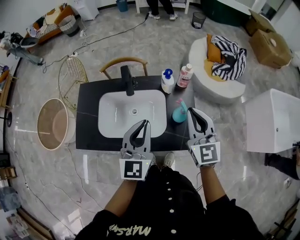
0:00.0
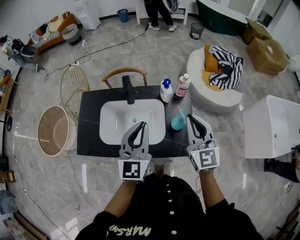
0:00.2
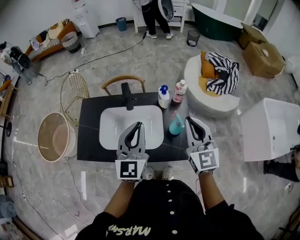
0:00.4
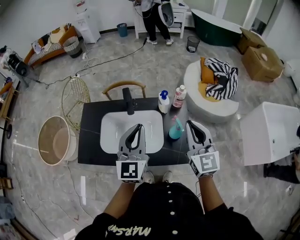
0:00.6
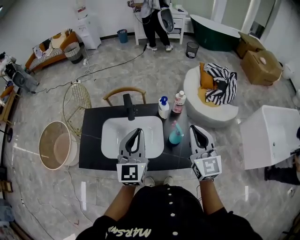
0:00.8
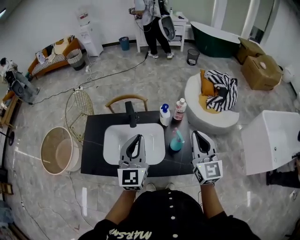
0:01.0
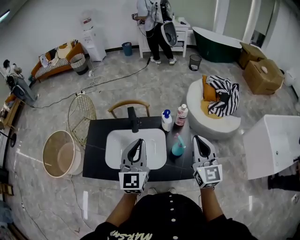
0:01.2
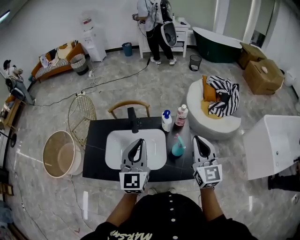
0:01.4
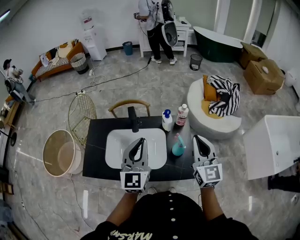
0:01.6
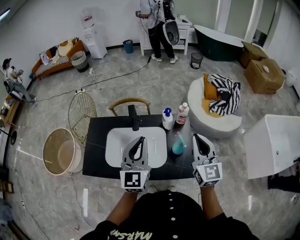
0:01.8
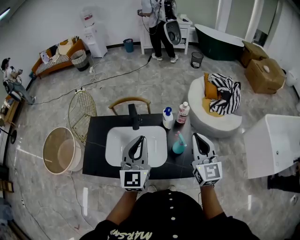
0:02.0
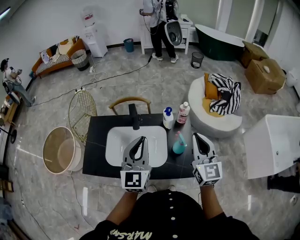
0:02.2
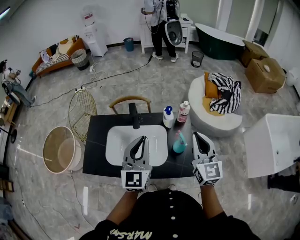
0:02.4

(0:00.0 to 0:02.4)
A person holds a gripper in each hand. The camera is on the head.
0:00.0 - 0:01.2: The grippers both shift upward by some 5 cm.
0:01.2 - 0:02.4: The two grippers keep their place.

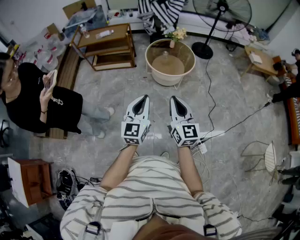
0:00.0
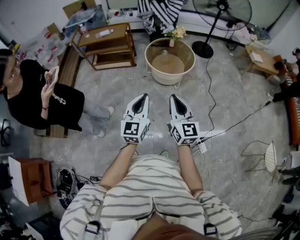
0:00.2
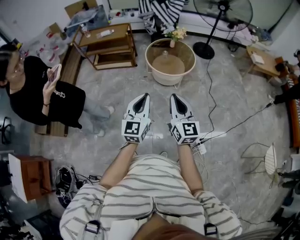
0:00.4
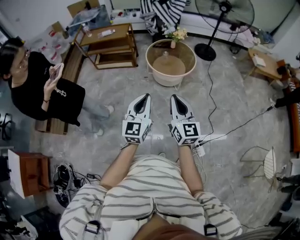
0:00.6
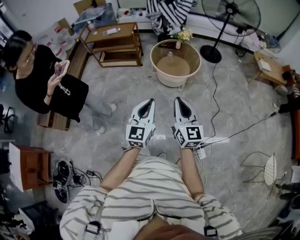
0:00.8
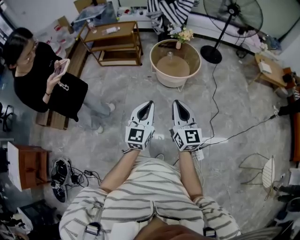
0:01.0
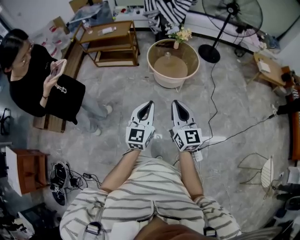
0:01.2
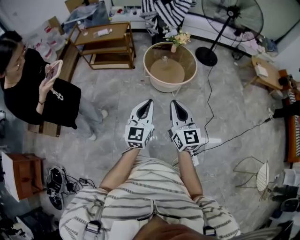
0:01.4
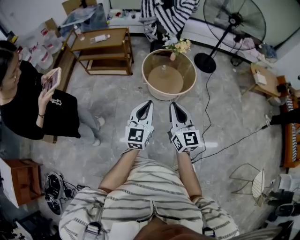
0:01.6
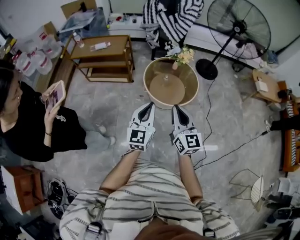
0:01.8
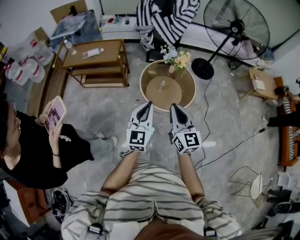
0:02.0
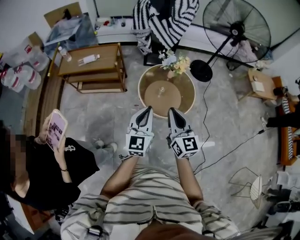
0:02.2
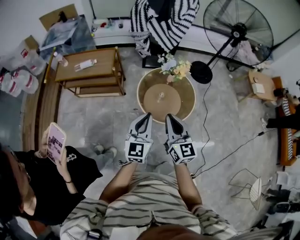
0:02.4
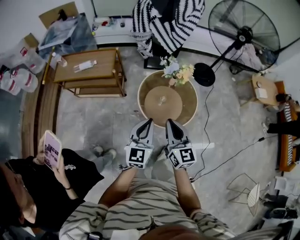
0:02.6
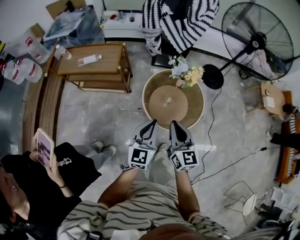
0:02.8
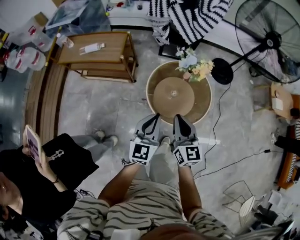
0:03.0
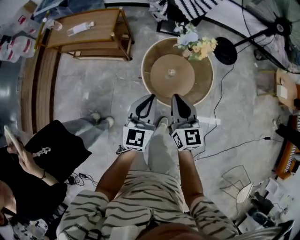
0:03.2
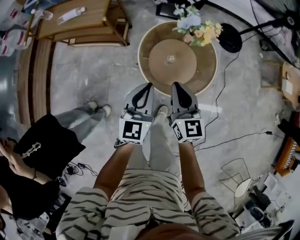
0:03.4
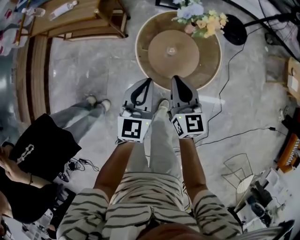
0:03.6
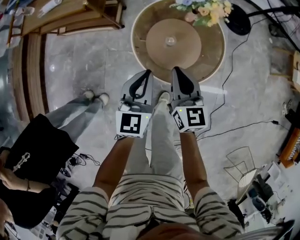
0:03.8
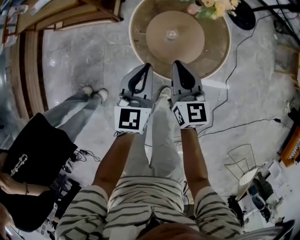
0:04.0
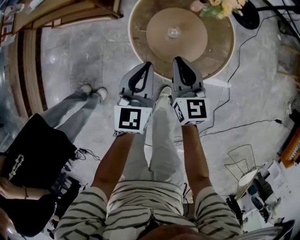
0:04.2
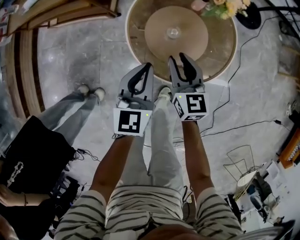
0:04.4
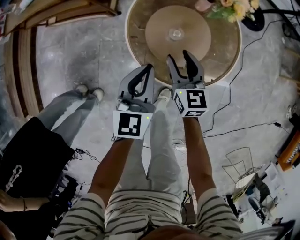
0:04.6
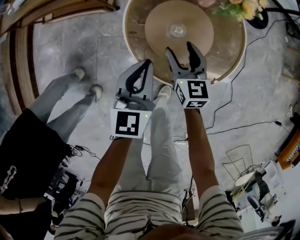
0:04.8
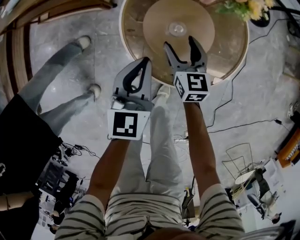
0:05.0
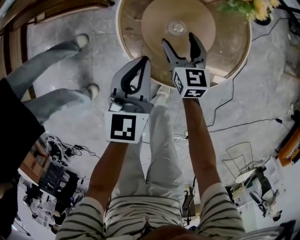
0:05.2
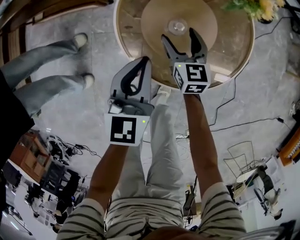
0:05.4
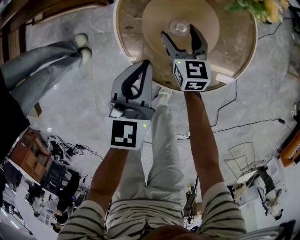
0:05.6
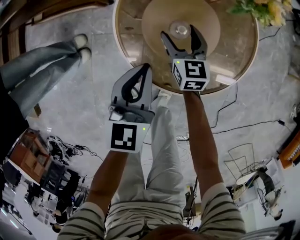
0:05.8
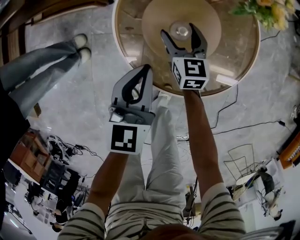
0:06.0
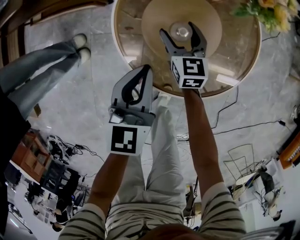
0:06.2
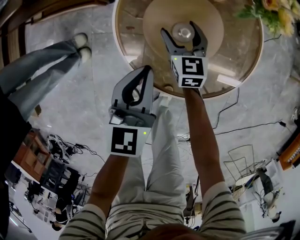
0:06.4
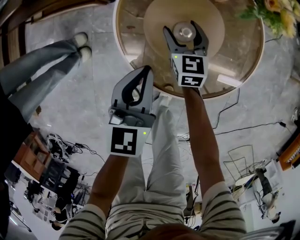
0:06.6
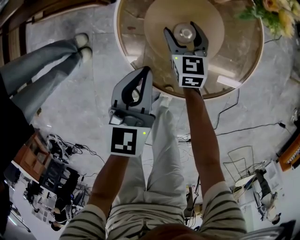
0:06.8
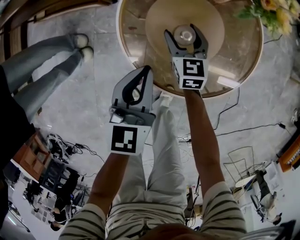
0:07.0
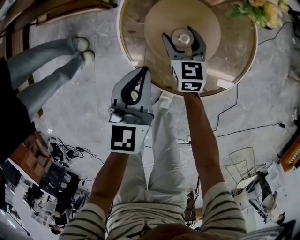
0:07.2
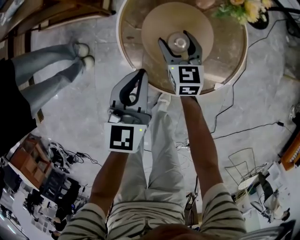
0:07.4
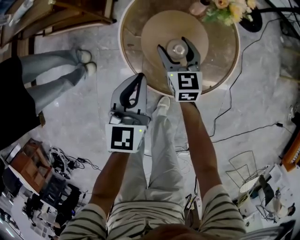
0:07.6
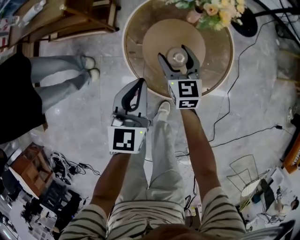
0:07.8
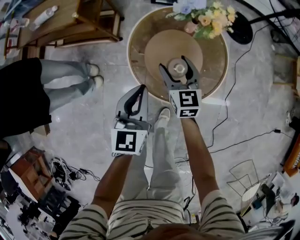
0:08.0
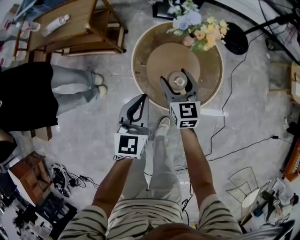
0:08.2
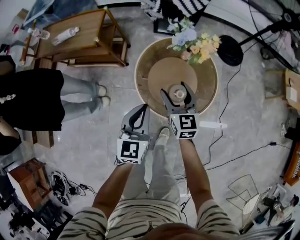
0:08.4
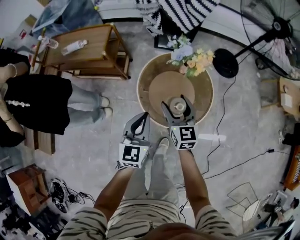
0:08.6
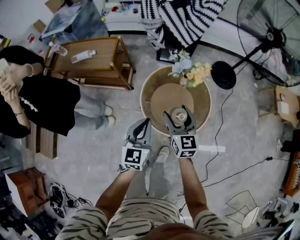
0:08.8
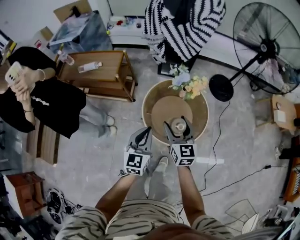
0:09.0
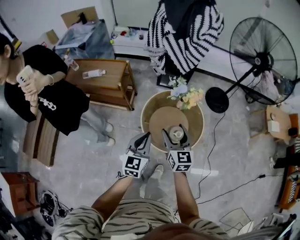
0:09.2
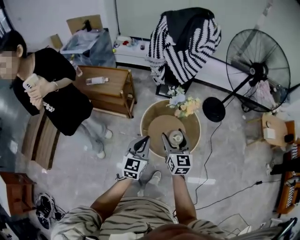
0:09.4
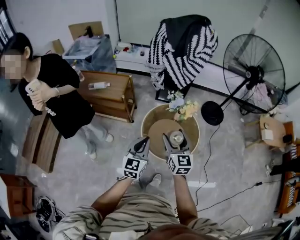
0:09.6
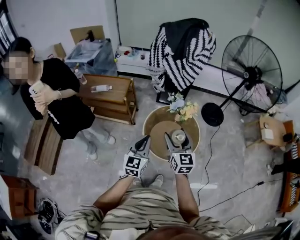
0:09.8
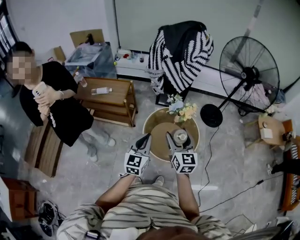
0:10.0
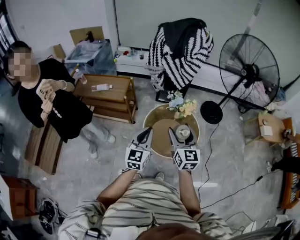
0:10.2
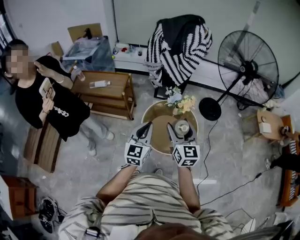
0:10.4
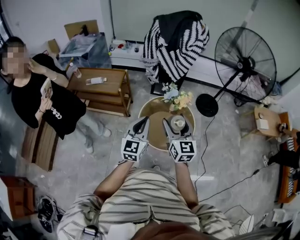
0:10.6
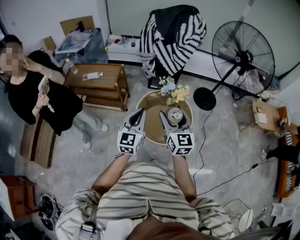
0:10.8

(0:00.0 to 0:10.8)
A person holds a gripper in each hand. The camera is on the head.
0:00.0 - 0:01.6: The right gripper heads forward, covering about 20 cm; the left gripper goes about 20 cm forward and to the right.
0:01.6 - 0:03.0: The two grippers go roughly 35 cm forward.
0:03.0 - 0:04.6: Both grippers travel together downward, approximately 30 cm. The right gripper opens its fingers.
0:04.6 - 0:06.2: The left gripper heads downward, covering roughly 10 cm, while the right gripper heads downward and forward, covering approximately 20 cm, and opens.
0:06.2 - 0:07.8: Both grippers move upward, some 15 cm.
0:07.8 - 0:09.2: The two grippers go approximately 30 cm upward.
0:09.2 - 0:10.8: Both grippers travel together upward, roughly 15 cm.

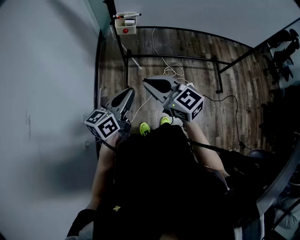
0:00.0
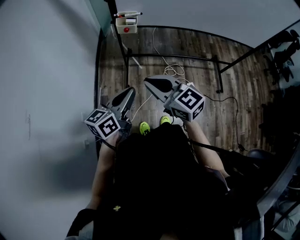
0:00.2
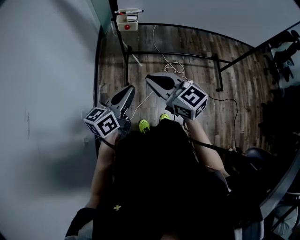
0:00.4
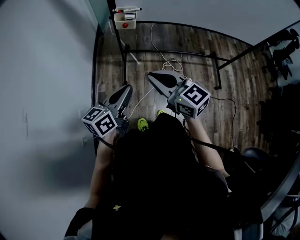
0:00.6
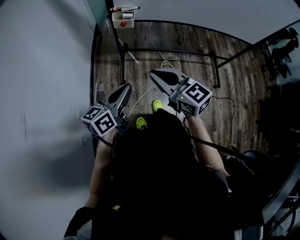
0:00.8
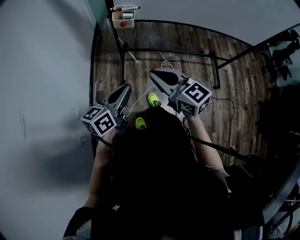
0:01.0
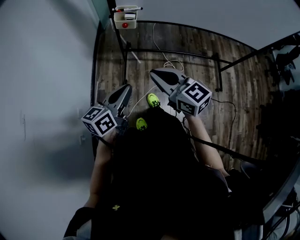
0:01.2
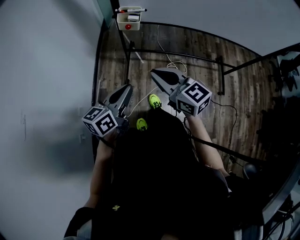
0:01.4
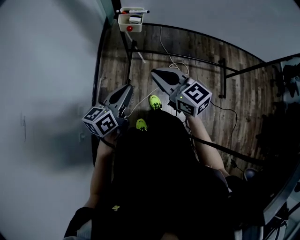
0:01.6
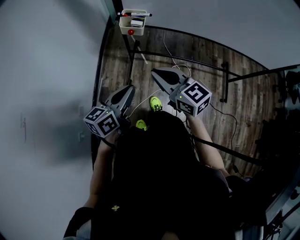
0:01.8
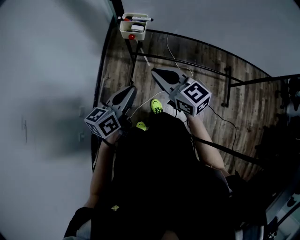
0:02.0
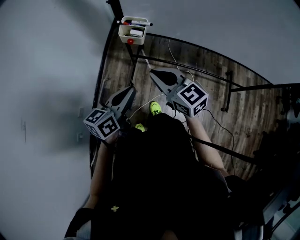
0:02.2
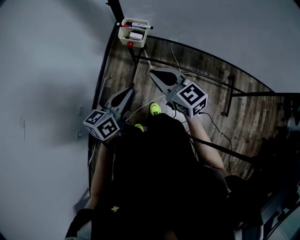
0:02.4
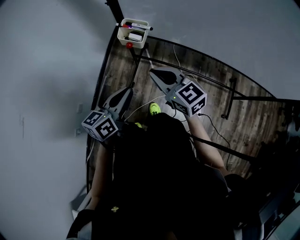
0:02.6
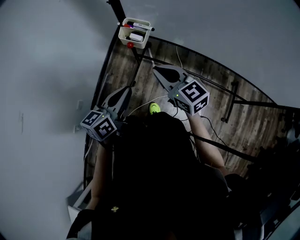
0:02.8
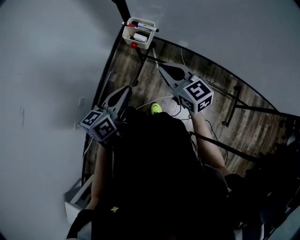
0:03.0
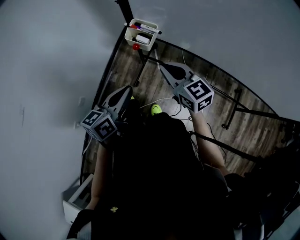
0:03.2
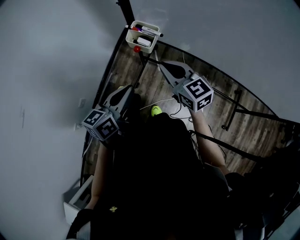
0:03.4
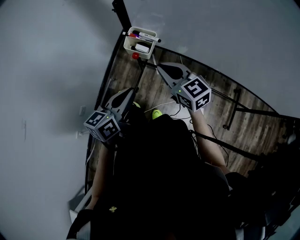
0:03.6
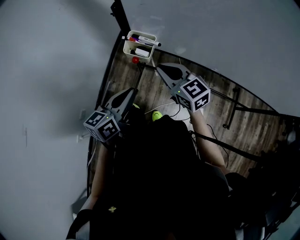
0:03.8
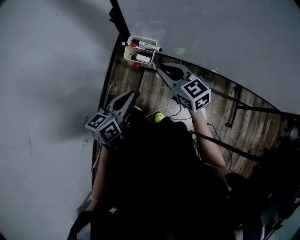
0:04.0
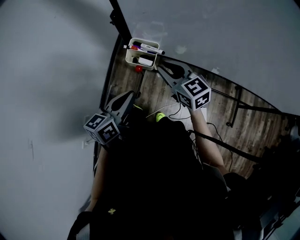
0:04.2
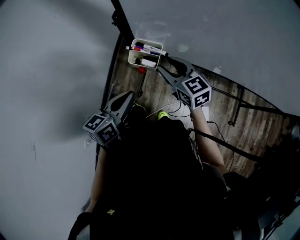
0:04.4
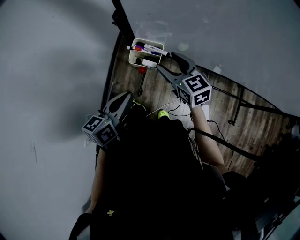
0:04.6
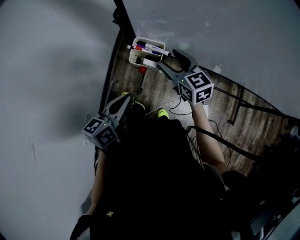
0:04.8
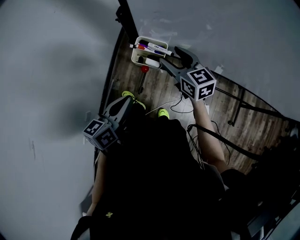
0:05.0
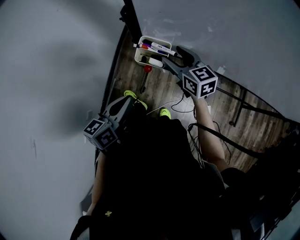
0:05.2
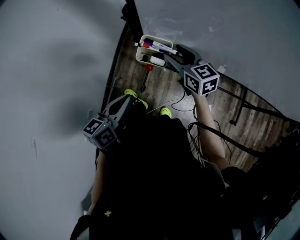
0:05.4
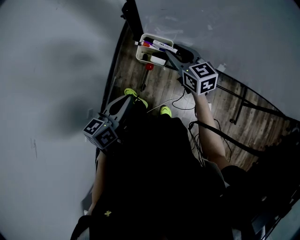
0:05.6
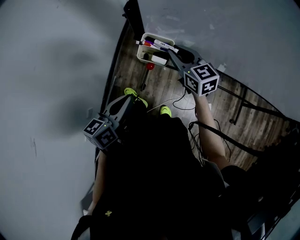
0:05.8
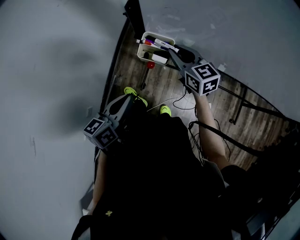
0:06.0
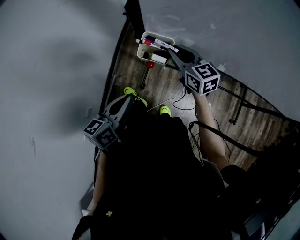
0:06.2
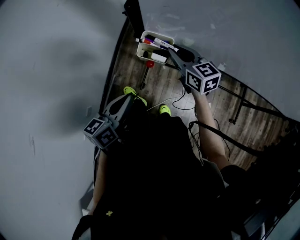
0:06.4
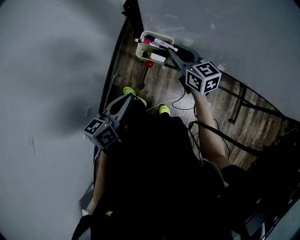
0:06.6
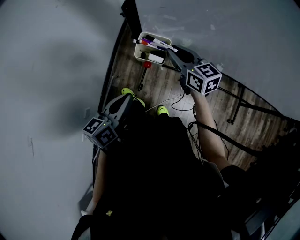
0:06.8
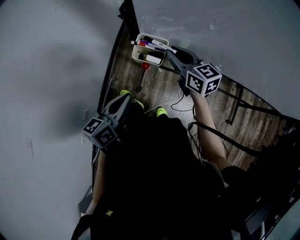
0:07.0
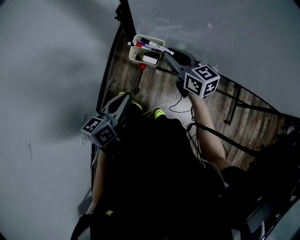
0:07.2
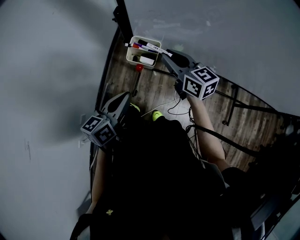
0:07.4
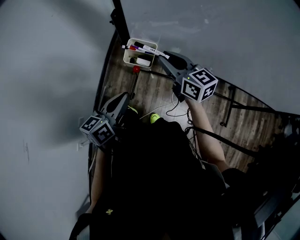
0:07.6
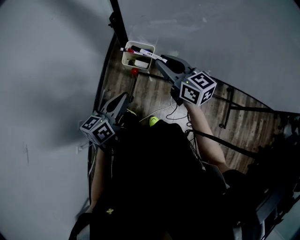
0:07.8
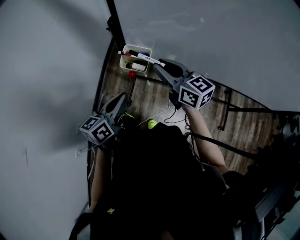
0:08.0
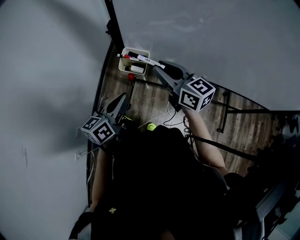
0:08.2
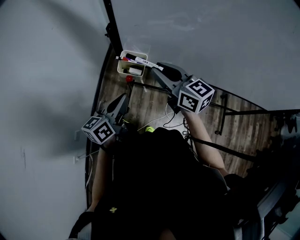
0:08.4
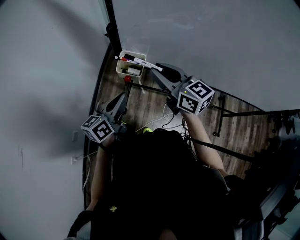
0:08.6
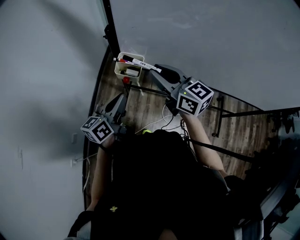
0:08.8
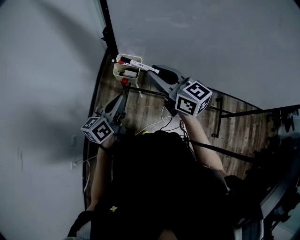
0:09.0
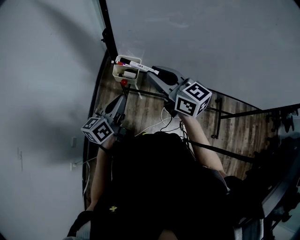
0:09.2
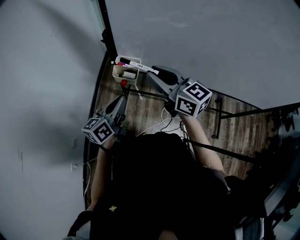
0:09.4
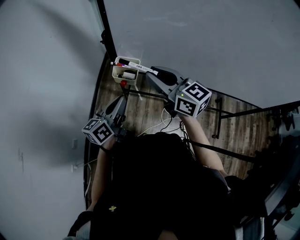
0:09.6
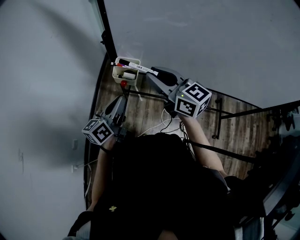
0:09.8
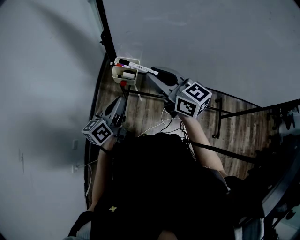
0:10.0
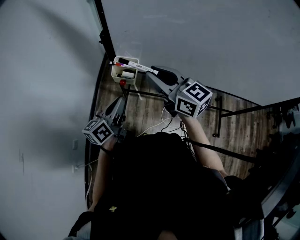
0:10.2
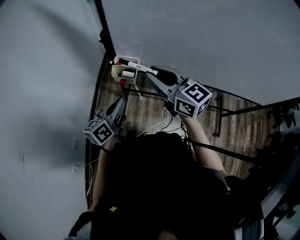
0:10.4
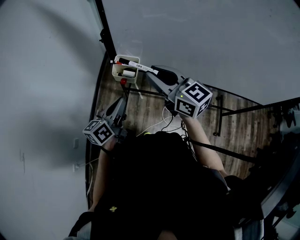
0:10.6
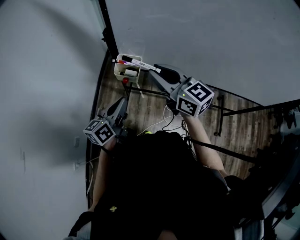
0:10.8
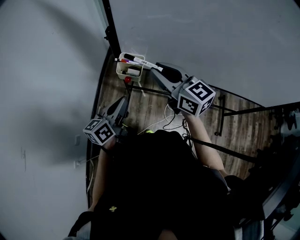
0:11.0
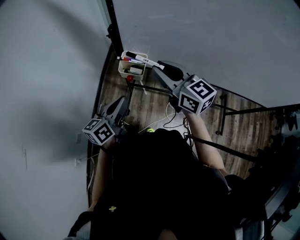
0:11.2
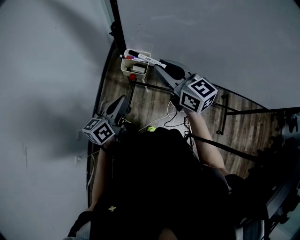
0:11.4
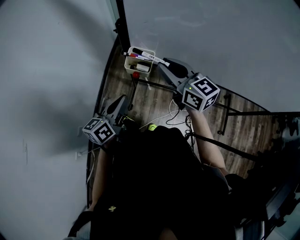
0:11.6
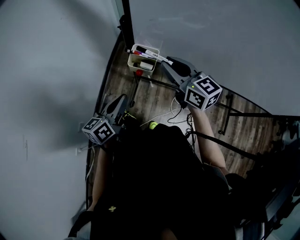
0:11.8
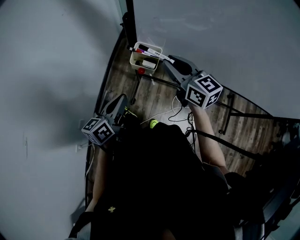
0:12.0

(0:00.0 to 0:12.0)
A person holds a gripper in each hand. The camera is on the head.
0:00.0 - 0:01.6: Both grippers move forward, about 10 cm.
0:01.6 - 0:03.0: The two grippers go roughly 15 cm forward and to the right.
0:03.0 - 0:04.4: Both grippers move forward, roughly 10 cm. The right gripper opens.
0:04.4 - 0:06.0: The right gripper closes.
0:06.0 - 0:07.6: The right gripper travels upward by about 5 cm.
0:07.6 - 0:09.0: The right gripper travels upward and backward by approximately 10 cm.
0:09.0 - 0:10.4: The grippers make only small movements.
0:10.4 - 0:12.0: The left gripper heads to the left, covering roughly 5 cm, while the right gripper travels downward and forward by some 10 cm.
